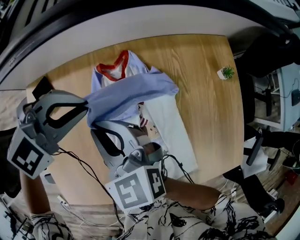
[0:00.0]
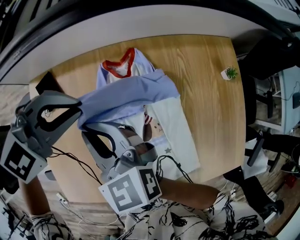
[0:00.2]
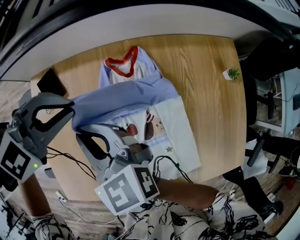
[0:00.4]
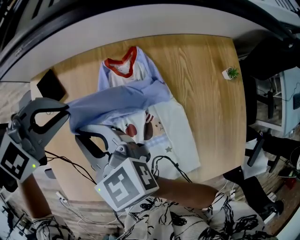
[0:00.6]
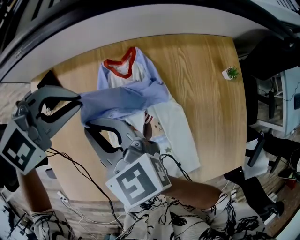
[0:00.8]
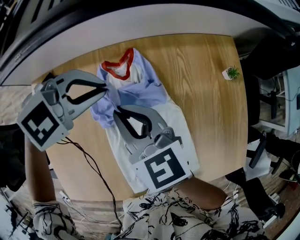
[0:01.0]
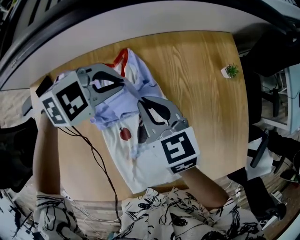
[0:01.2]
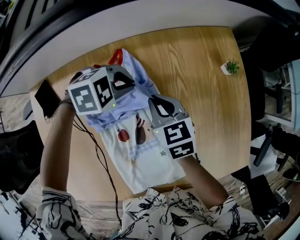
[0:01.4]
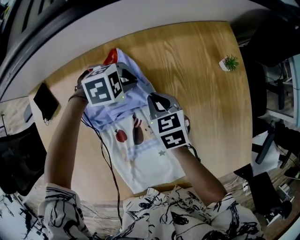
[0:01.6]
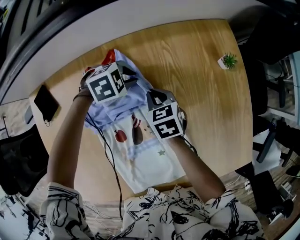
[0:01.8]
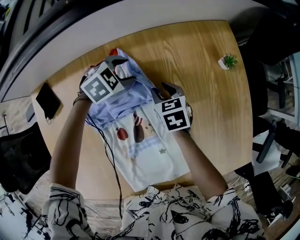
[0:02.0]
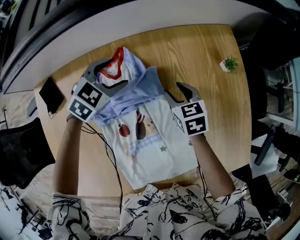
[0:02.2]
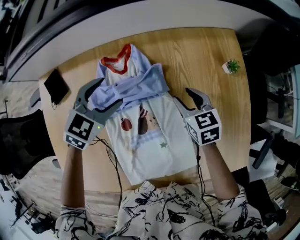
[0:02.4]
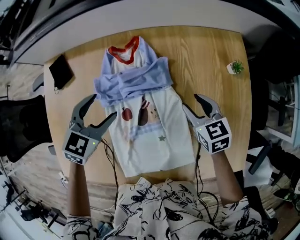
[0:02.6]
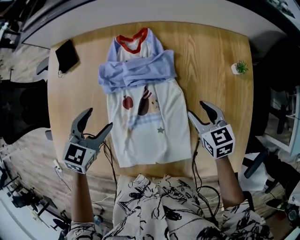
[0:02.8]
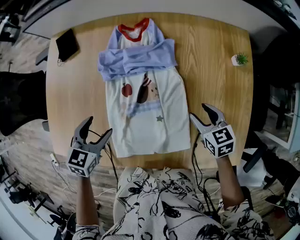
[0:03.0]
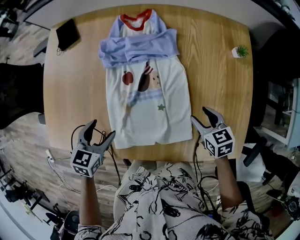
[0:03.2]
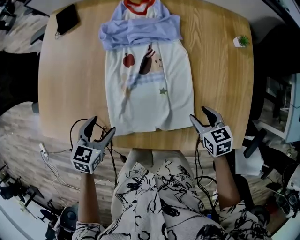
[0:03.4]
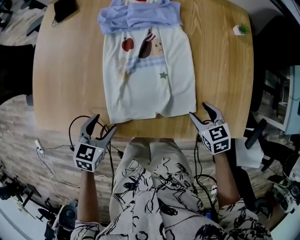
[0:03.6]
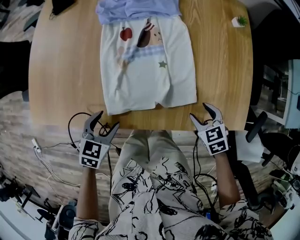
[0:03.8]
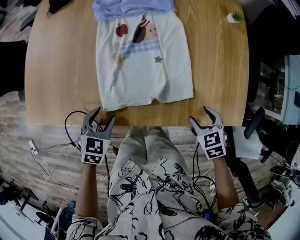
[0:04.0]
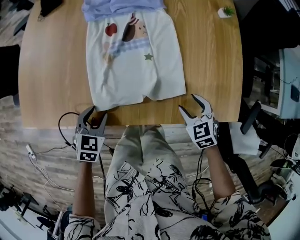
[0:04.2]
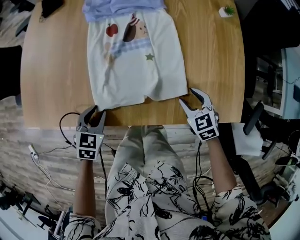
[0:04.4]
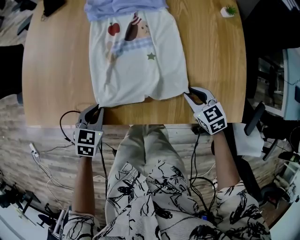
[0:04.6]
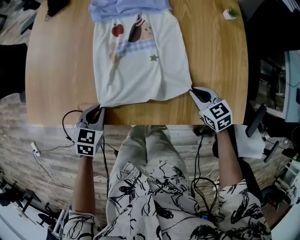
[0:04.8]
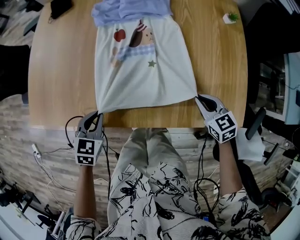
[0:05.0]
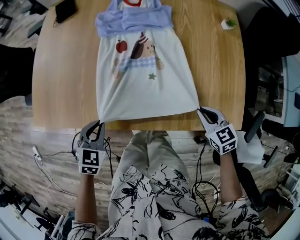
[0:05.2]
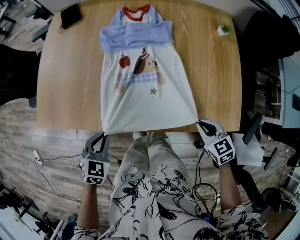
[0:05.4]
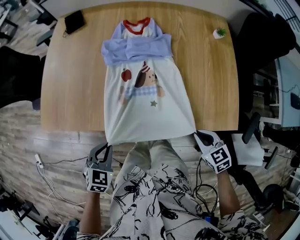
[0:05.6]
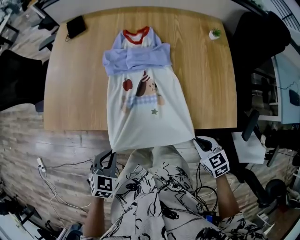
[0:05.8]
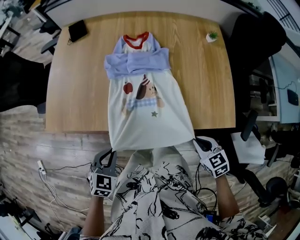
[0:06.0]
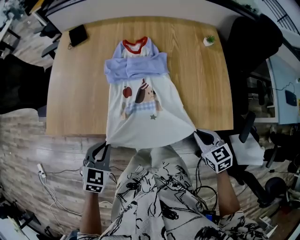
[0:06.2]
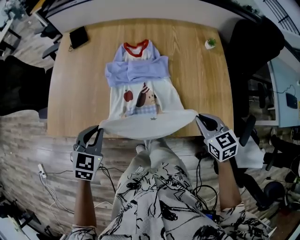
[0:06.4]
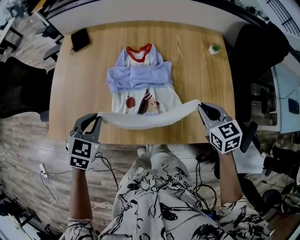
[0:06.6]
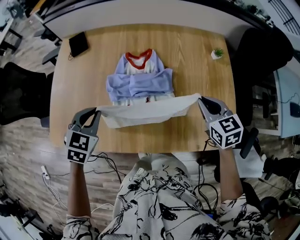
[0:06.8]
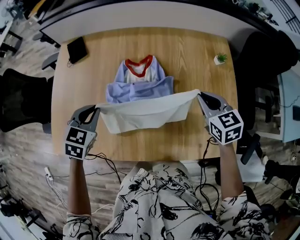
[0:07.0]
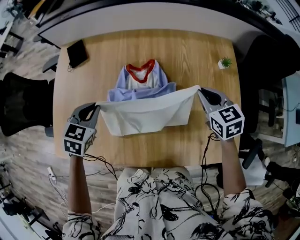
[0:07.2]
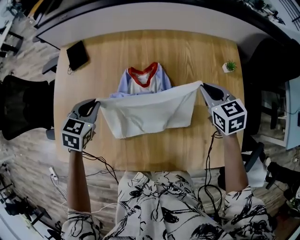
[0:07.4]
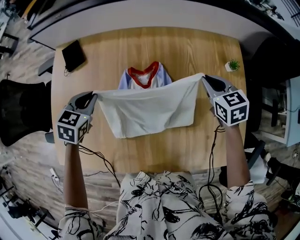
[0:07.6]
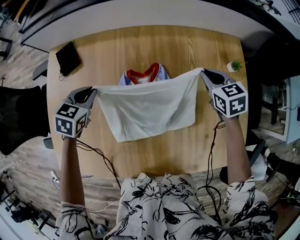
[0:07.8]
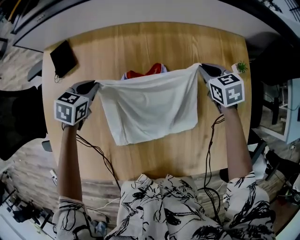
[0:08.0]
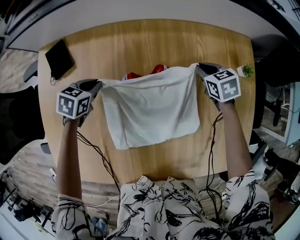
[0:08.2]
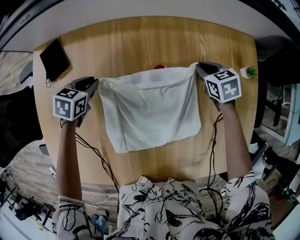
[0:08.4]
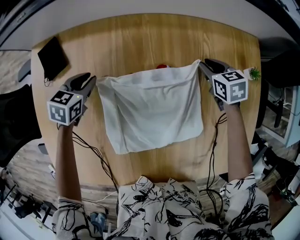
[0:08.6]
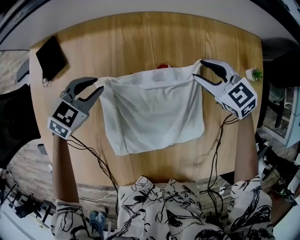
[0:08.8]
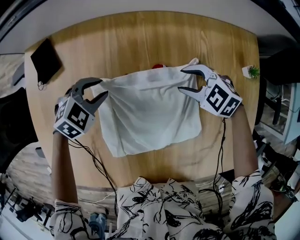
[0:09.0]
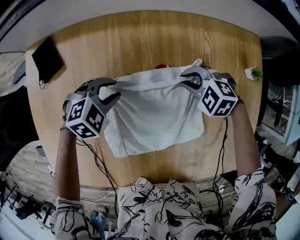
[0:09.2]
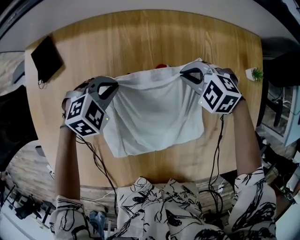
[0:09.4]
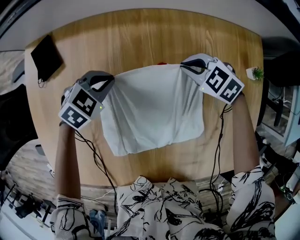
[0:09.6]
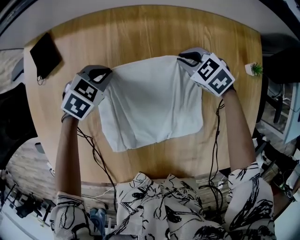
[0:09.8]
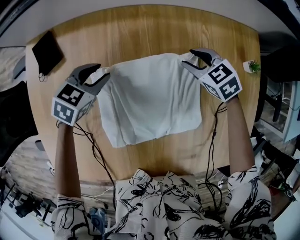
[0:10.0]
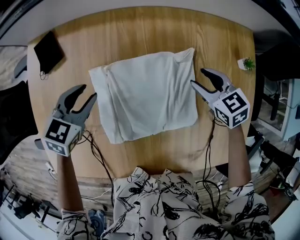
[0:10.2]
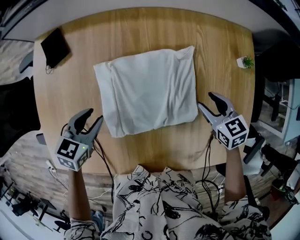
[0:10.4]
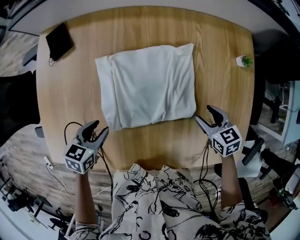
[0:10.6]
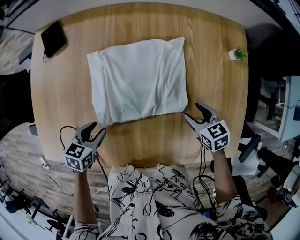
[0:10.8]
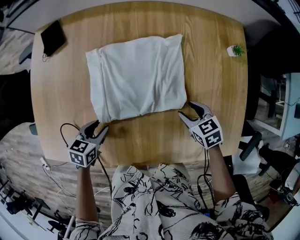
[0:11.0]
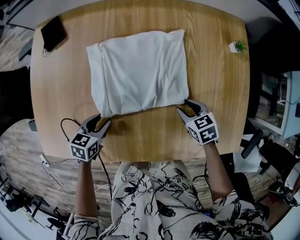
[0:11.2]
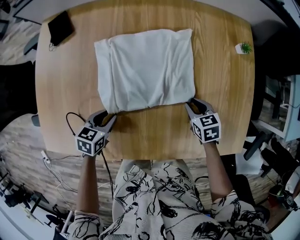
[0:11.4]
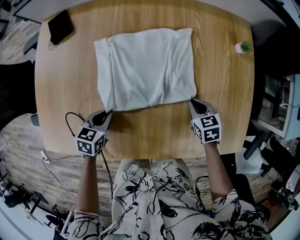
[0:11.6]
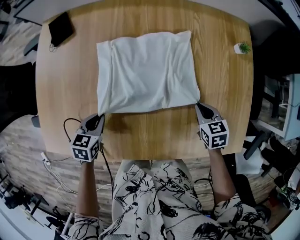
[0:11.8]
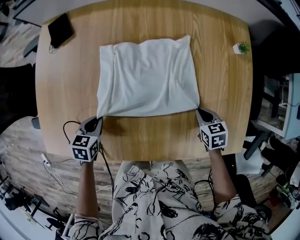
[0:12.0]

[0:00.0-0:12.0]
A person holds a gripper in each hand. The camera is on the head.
0:00.0 to 0:01.6: The two grippers go about 20 cm downward. The left gripper changes its angle by about 30 degrees. Meanwhile the right gripper turns by about 30 degrees.
0:01.6 to 0:03.0: The right gripper moves some 5 cm upward and comes back, and opens up. The left gripper ends up roughly 35 cm from where it was, changes its angle by roughly 80 degrees, and opens.
0:03.0 to 0:04.4: The left gripper heads backward and downward, covering about 25 cm, and closes up. The right gripper travels backward by approximately 20 cm, and turns by some 20 degrees.
0:04.4 to 0:06.0: The two grippers go about 20 cm backward and upward. The right gripper closes its fingers.
0:06.0 to 0:07.6: The two grippers travel together, forward, some 50 cm.
0:07.6 to 0:09.0: The left gripper is displaced downward by some 15 cm, and turns by about 40 degrees. Meanwhile the right gripper moves up and down over approximately 15 cm, changing direction 2 times, swivels roughly 50 degrees, and opens.
0:09.0 to 0:10.4: The right gripper changes place by roughly 15 cm, changes its angle by some 40 degrees, and closes, then reopens. Meanwhile the left gripper shifts by some 15 cm, and swivels some 40 degrees.
0:10.4 to 0:12.0: Both grippers travel together backward and downward, roughly 15 cm. The right gripper closes.

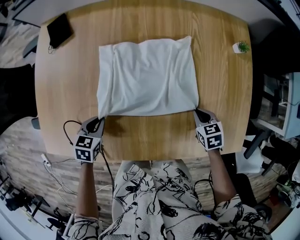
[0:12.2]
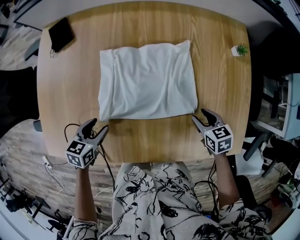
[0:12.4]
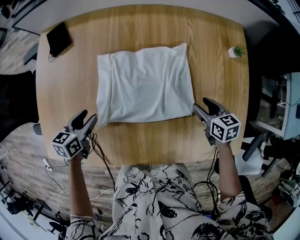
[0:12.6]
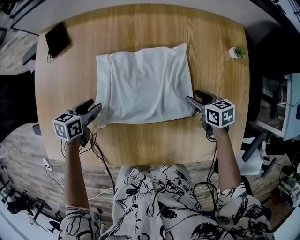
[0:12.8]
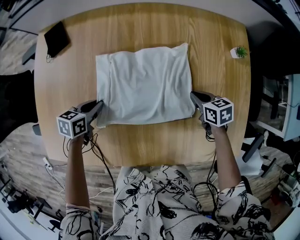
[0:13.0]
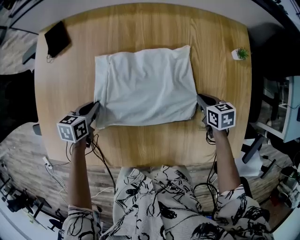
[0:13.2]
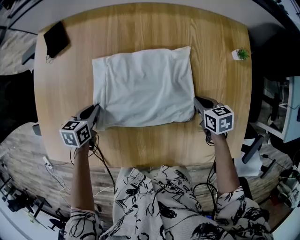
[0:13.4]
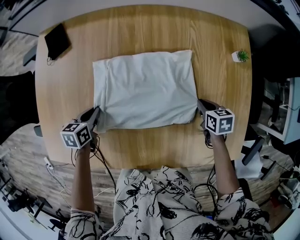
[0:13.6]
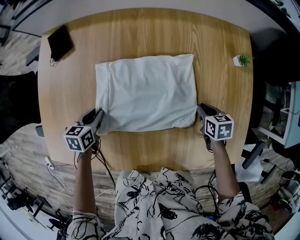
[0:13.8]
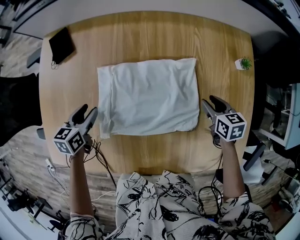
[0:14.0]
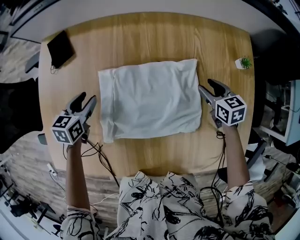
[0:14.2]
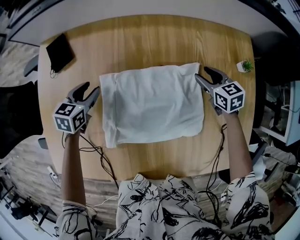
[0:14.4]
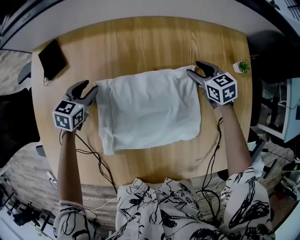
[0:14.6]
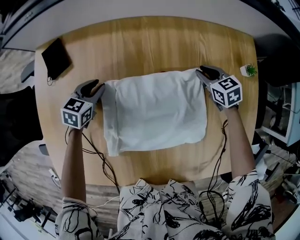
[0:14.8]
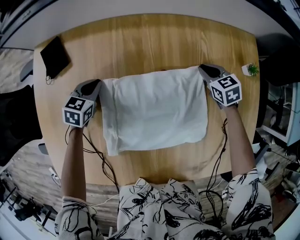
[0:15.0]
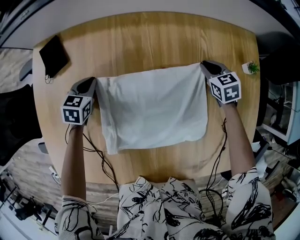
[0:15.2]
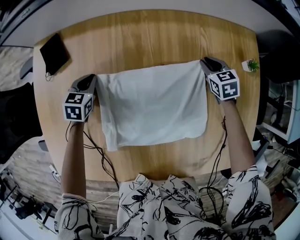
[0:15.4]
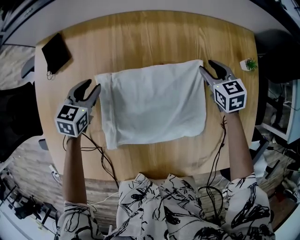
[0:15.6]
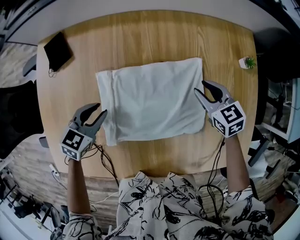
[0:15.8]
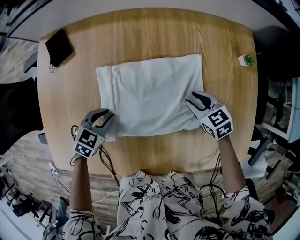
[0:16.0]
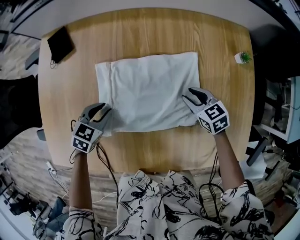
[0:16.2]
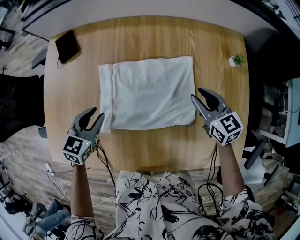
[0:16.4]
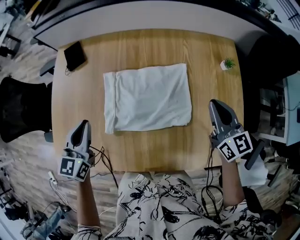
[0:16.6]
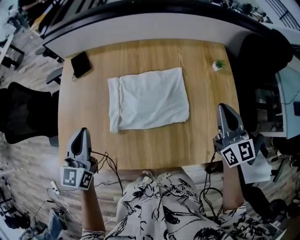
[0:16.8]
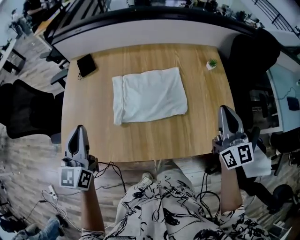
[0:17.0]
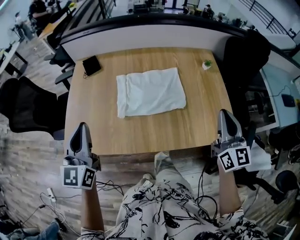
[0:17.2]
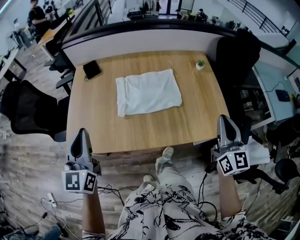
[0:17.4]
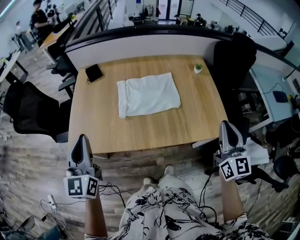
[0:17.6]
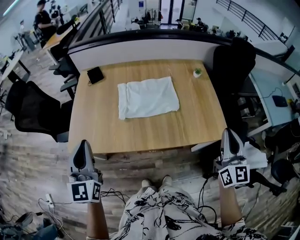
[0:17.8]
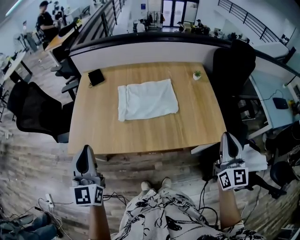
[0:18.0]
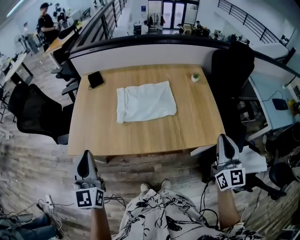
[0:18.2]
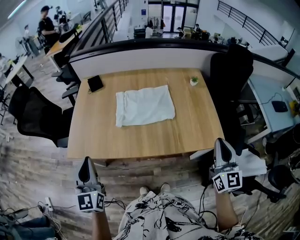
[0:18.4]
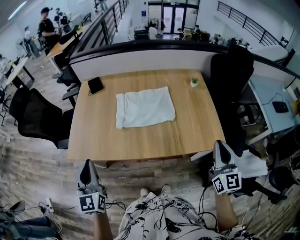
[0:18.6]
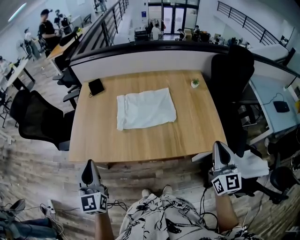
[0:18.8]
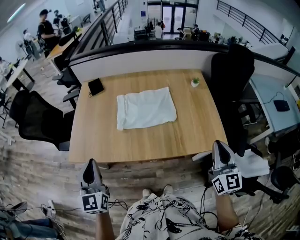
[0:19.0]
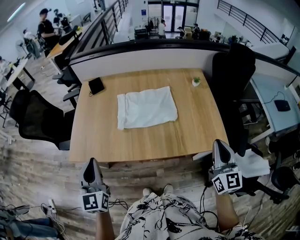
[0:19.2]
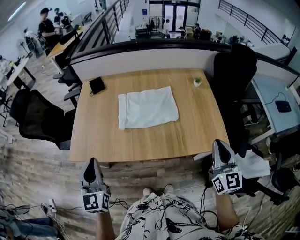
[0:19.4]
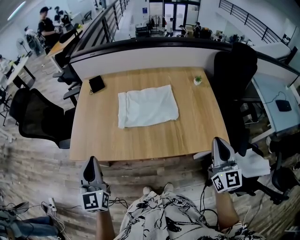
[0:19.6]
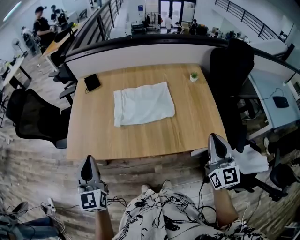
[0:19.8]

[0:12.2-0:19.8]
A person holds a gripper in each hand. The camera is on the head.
0:12.2 to 0:13.8: Both grippers travel together forward, approximately 10 cm. The right gripper opens, then closes once more.
0:13.8 to 0:15.2: Both grippers travel together forward, about 20 cm. The right gripper rotates approximately 30 degrees, and opens and closes again, while the left gripper turns by roughly 30 degrees.
0:15.2 to 0:16.8: The left gripper swings up and down, roughly 30 cm each way, with 2 reversals, and angles its fingers upward, by about 40 degrees. The right gripper moves up and down over some 35 cm, changing direction 2 times, and tips its fingers upward by roughly 50 degrees.
0:16.8 to 0:18.2: Both grippers travel together backward, some 30 cm.
0:18.2 to 0:19.8: There are only small adjustments of the grippers.

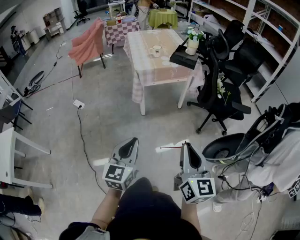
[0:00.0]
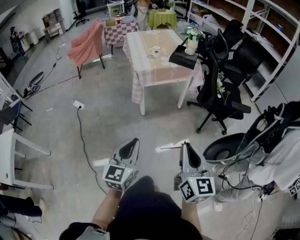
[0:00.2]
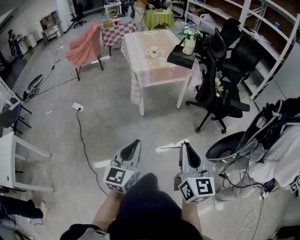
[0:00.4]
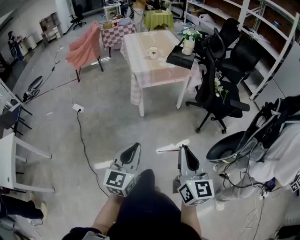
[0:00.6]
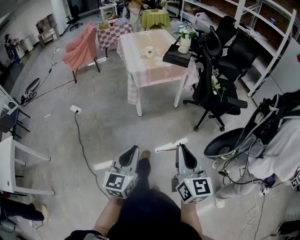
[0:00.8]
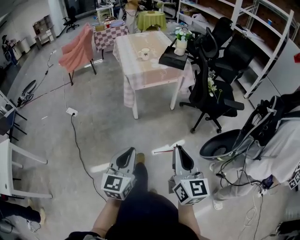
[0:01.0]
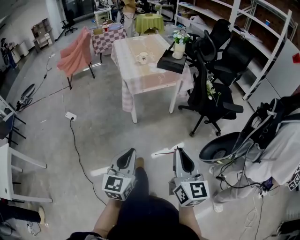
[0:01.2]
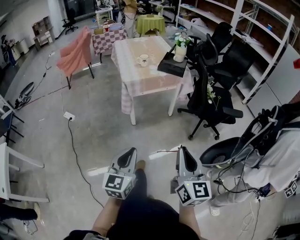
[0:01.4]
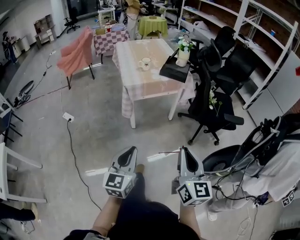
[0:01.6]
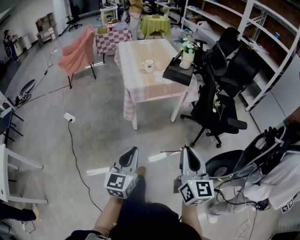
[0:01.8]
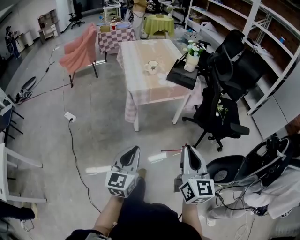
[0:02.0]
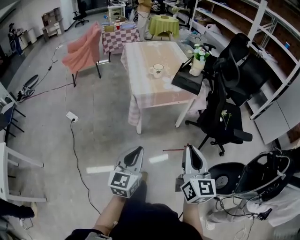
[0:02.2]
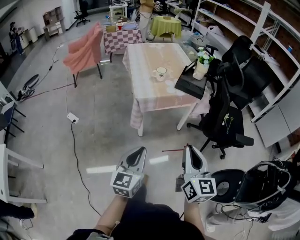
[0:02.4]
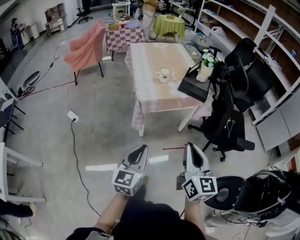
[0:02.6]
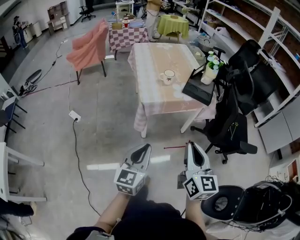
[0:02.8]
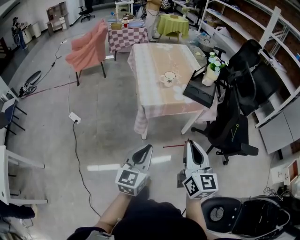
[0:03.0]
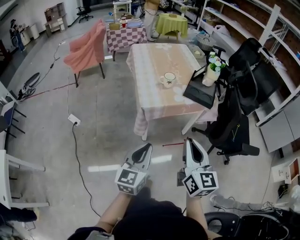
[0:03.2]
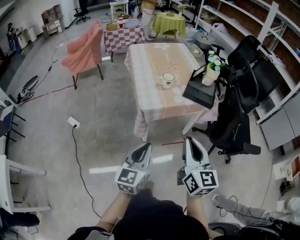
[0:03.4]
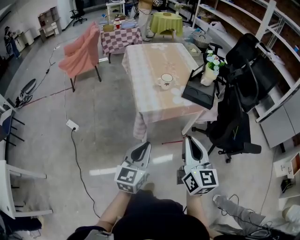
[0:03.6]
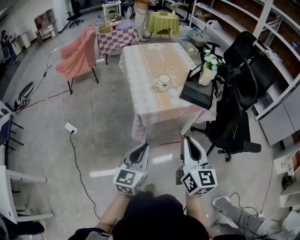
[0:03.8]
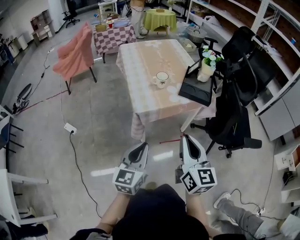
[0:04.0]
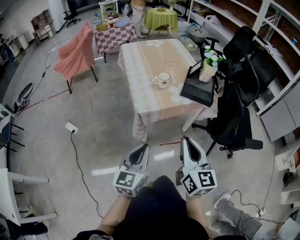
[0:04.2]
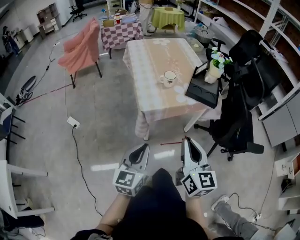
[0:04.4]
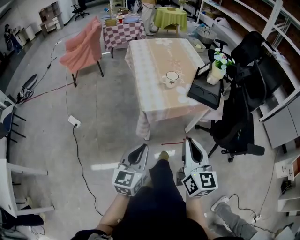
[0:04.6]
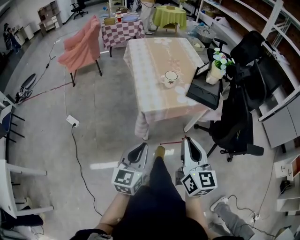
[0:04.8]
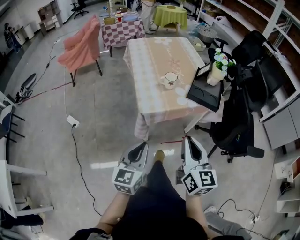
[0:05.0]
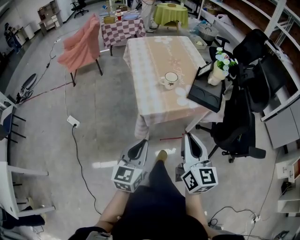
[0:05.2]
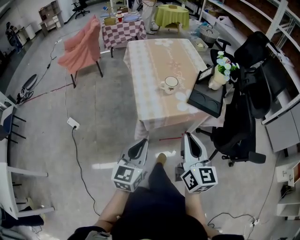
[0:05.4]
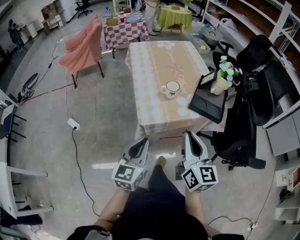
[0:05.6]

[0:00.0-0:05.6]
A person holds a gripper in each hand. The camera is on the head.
0:00.0 to 0:01.4: The grippers stay close to where they were, moving slightly.
0:01.4 to 0:02.8: Both grippers move forward, some 25 cm.
0:02.8 to 0:04.2: Both grippers move forward, about 10 cm.
0:04.2 to 0:05.6: Both grippers move forward, about 10 cm.
